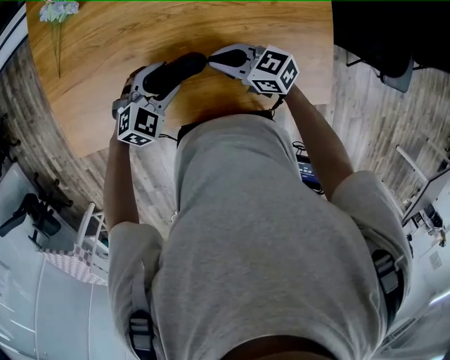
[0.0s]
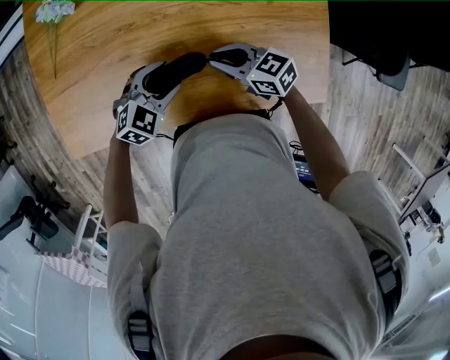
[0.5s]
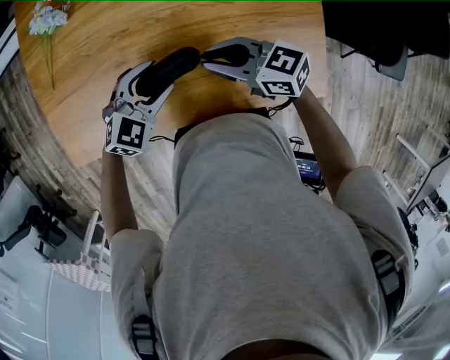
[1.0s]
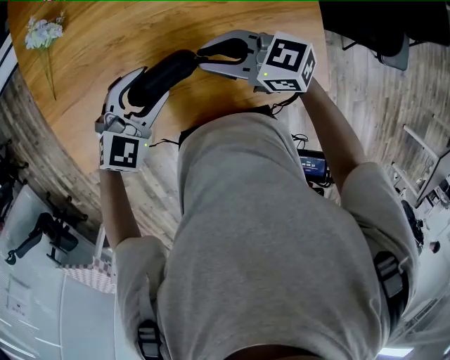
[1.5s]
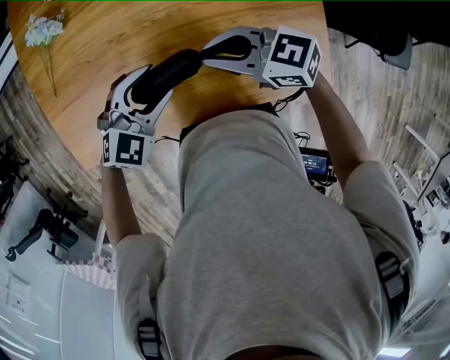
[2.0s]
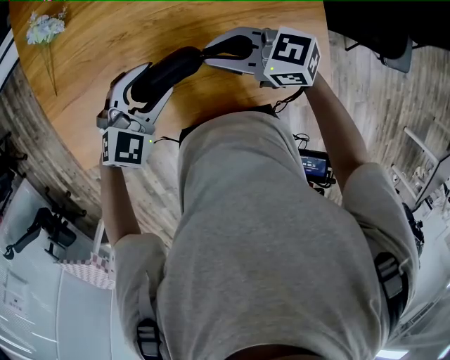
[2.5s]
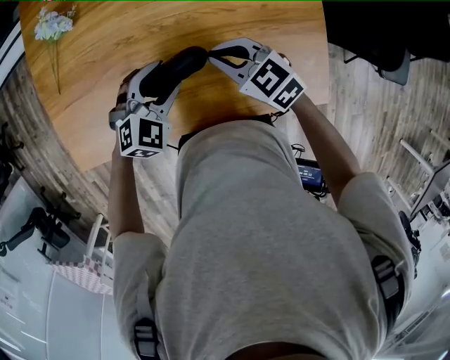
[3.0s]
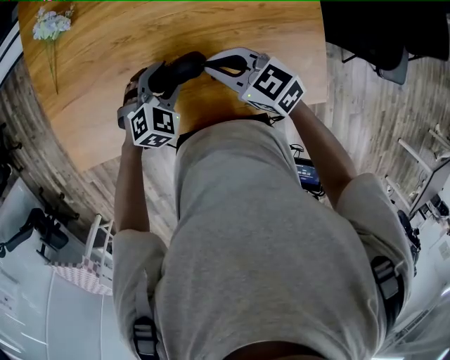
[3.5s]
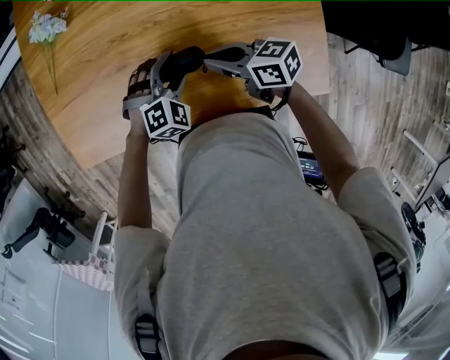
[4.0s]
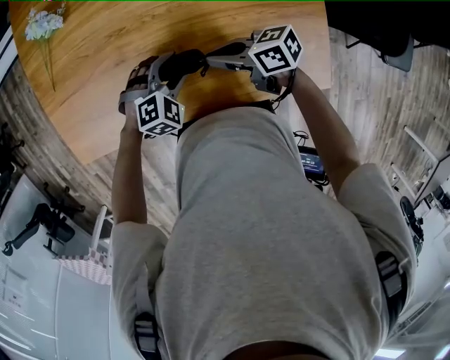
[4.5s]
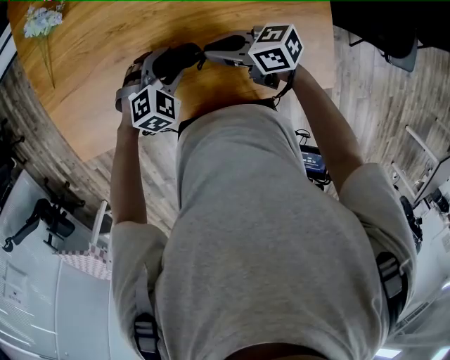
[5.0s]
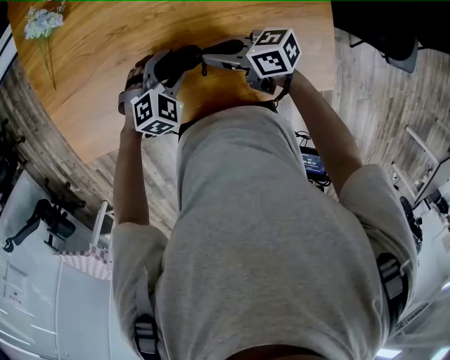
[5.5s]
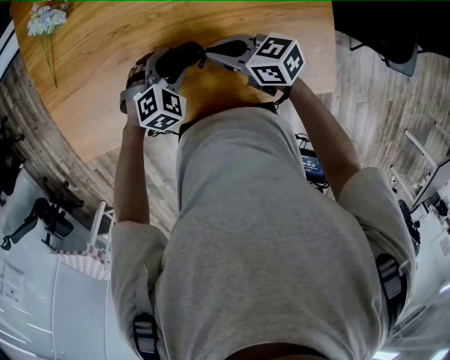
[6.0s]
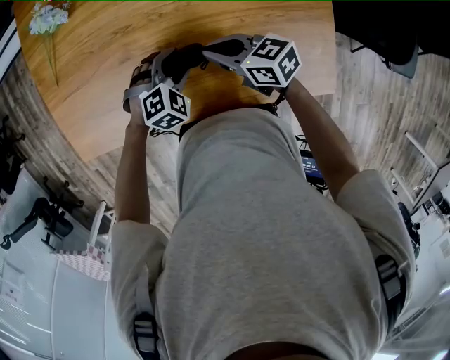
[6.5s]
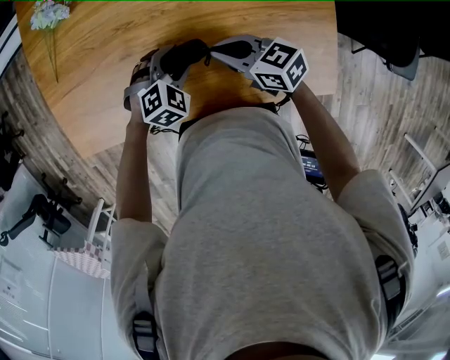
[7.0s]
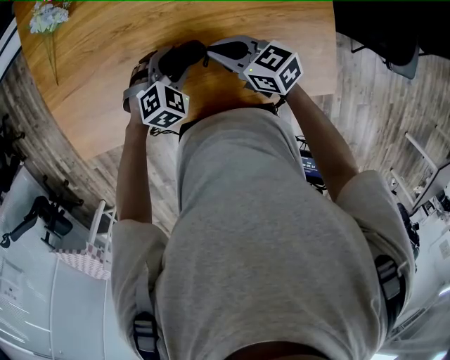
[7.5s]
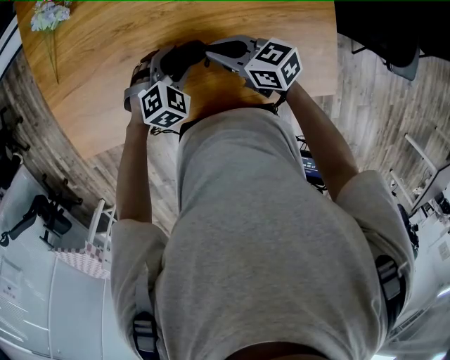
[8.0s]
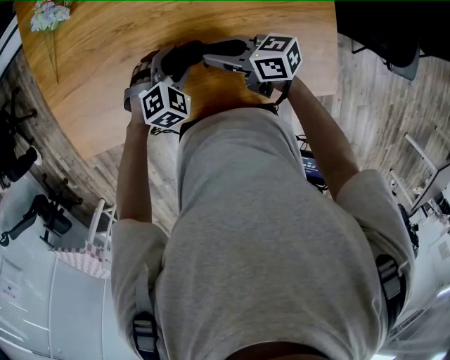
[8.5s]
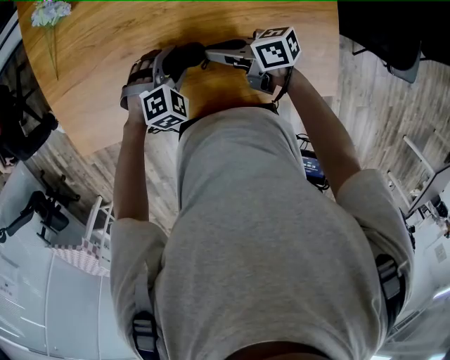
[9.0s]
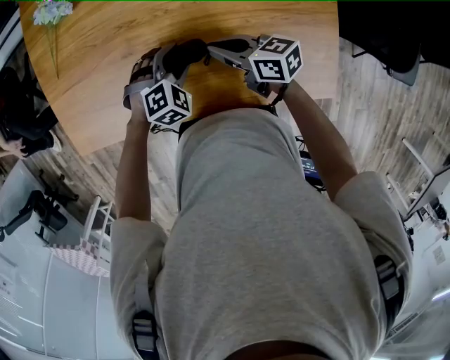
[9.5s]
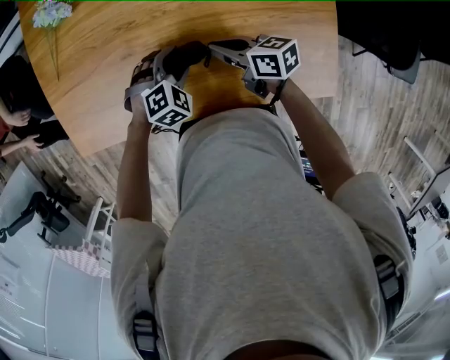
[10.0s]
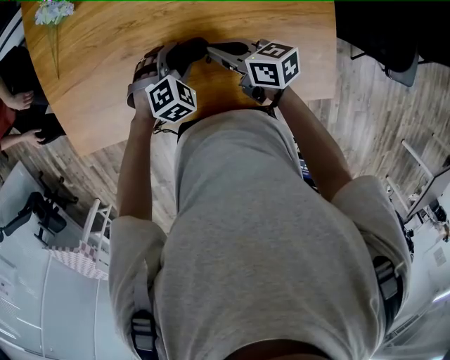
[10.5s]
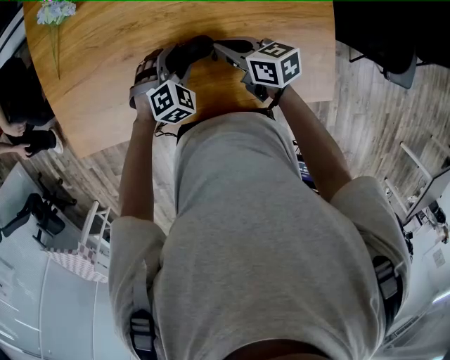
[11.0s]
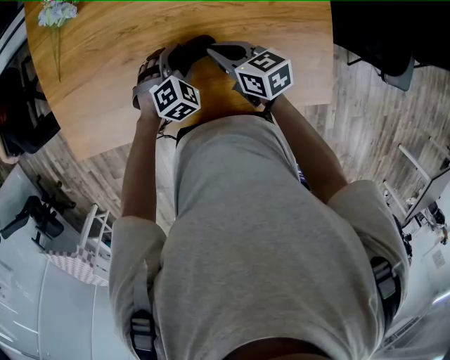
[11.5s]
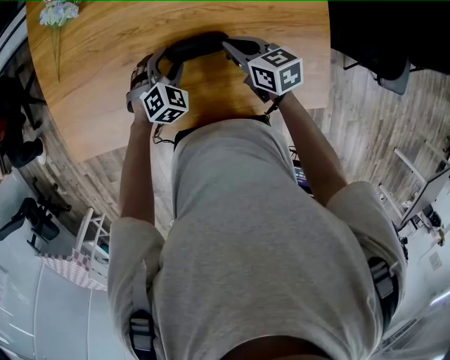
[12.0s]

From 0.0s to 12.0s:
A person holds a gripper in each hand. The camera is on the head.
From 0.0s to 2.0s: The grippers both shift upward by roughly 10 cm.
From 2.0s to 4.0s: The two grippers go about 10 cm downward. The left gripper rotates roughly 20 degrees. The right gripper rotates about 30 degrees.
From 4.0s to 8.0s: The grippers stay close to where they were, moving slightly.
From 10.0s to 12.0s: The right gripper changes place by about 5 cm, and changes its angle by some 20 degrees.

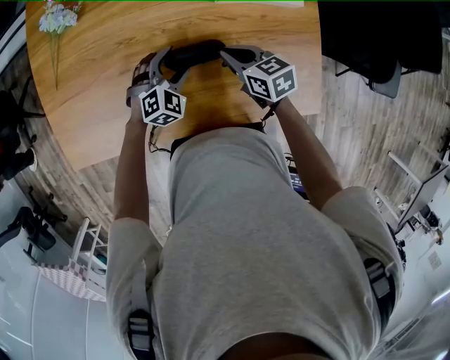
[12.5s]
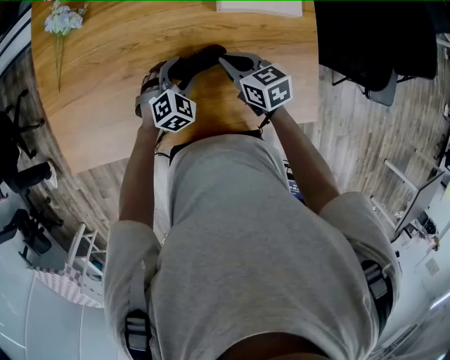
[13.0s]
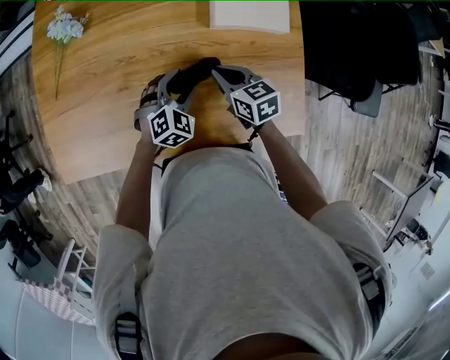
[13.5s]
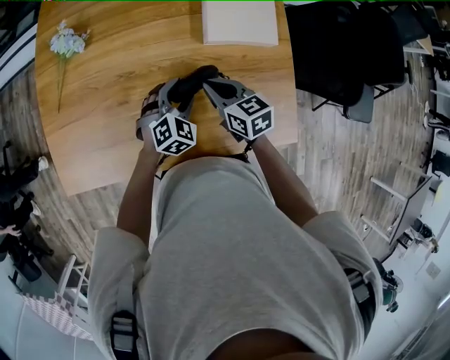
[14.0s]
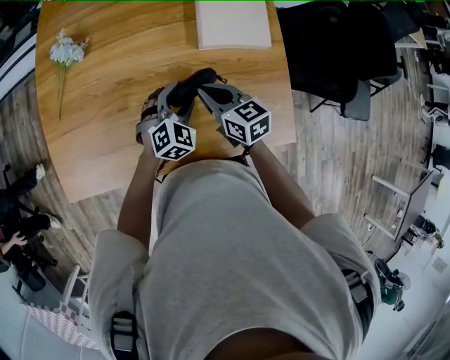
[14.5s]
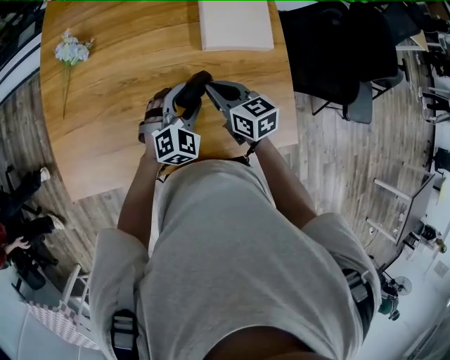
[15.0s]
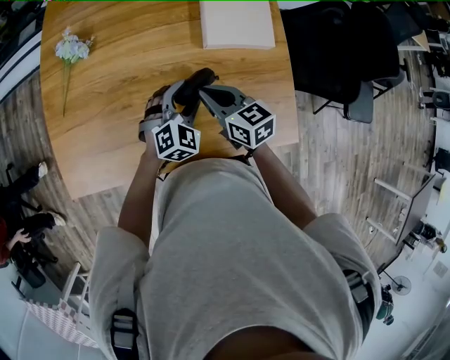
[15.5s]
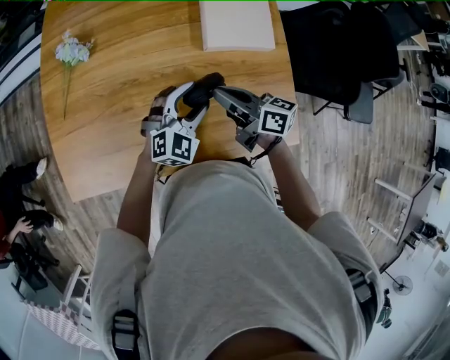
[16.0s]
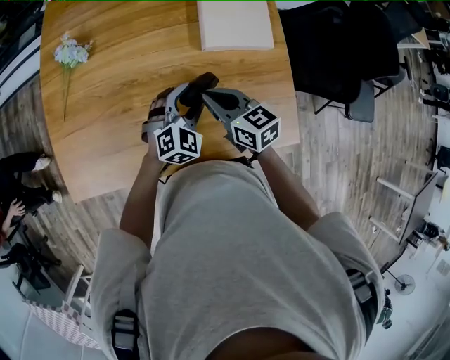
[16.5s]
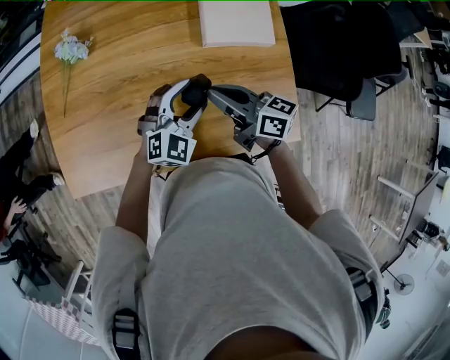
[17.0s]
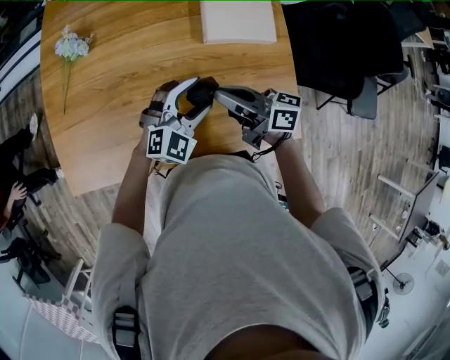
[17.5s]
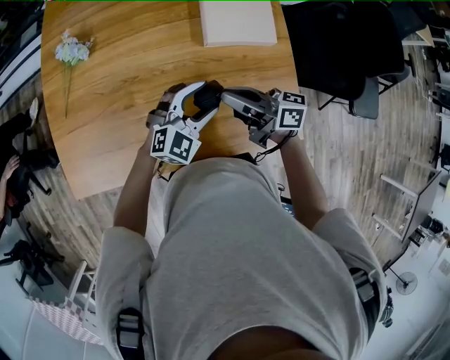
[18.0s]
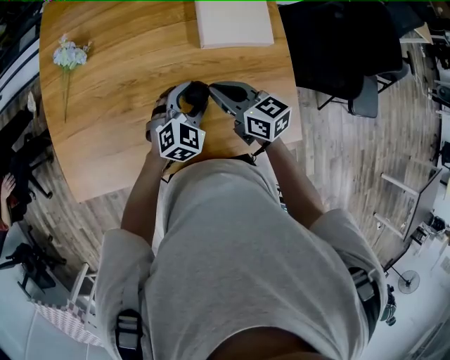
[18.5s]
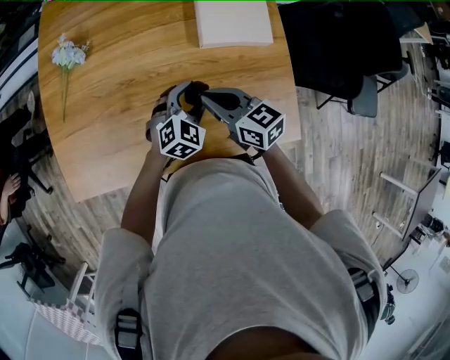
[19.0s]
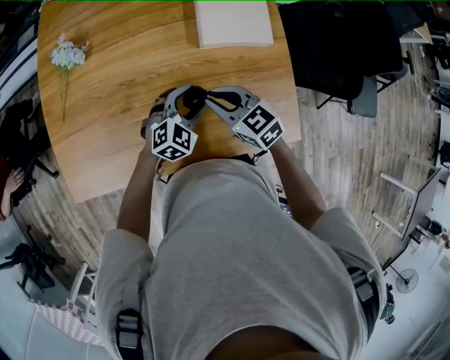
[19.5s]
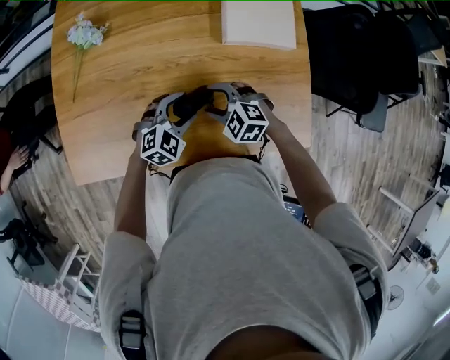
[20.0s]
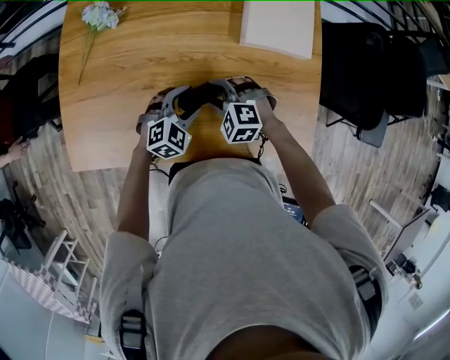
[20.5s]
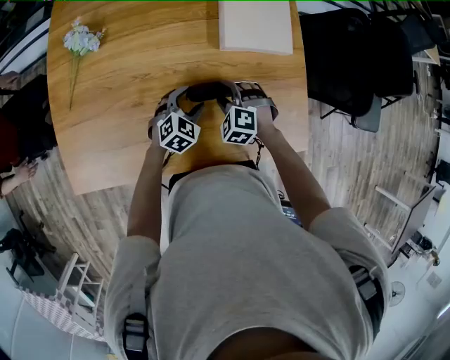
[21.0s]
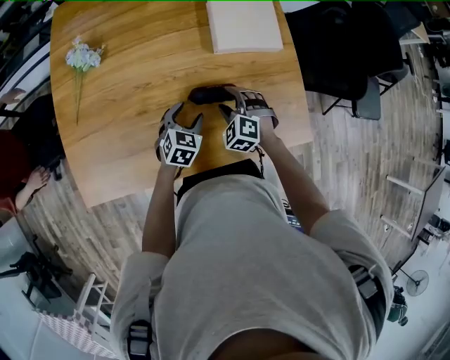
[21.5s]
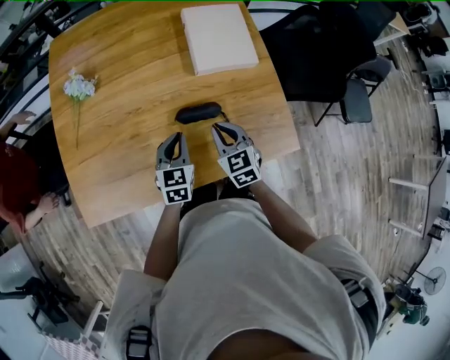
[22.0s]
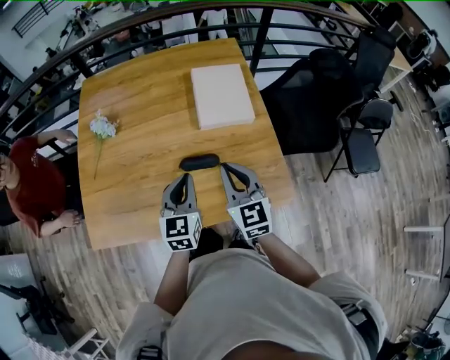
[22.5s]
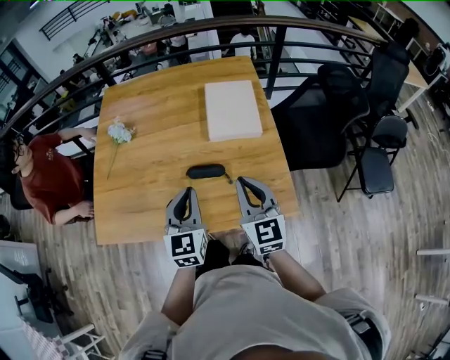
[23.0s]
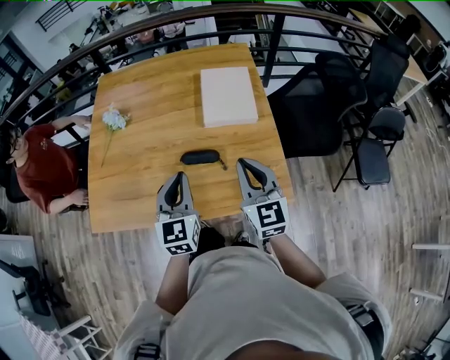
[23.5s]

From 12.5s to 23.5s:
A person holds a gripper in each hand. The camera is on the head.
From 12.5s to 14.5s: The grippers both shift upward by roughly 10 cm.
From 14.5s to 16.0s: The left gripper is displaced upward by some 5 cm. The right gripper changes its angle by roughly 30 degrees.
From 18.0s to 20.0s: The left gripper is displaced to the left and downward by some 10 cm, and rotates about 20 degrees. Meanwhile the right gripper moves downward and to the left, approximately 15 cm, angles its fingers downward, by approximately 50 degrees, and opens up.
From 20.0s to 21.5s: The left gripper swivels approximately 30 degrees. Meanwhile the right gripper ends up roughly 5 cm from where it was, and rotates about 30 degrees.
From 21.5s to 23.5s: The right gripper goes some 30 cm upward and to the right, points its fingers some 40 degrees further upward, and closes its fingers, while the left gripper heads upward, covering approximately 30 cm, angles its fingers upward, by approximately 30 degrees, and closes its fingers.

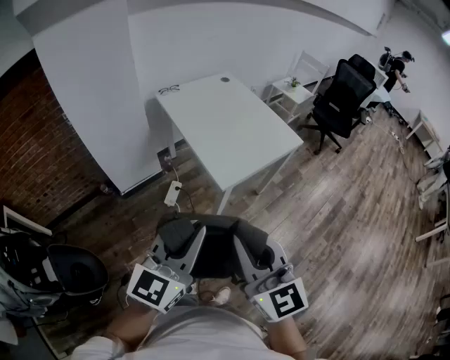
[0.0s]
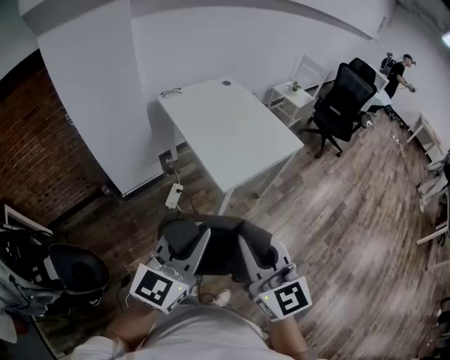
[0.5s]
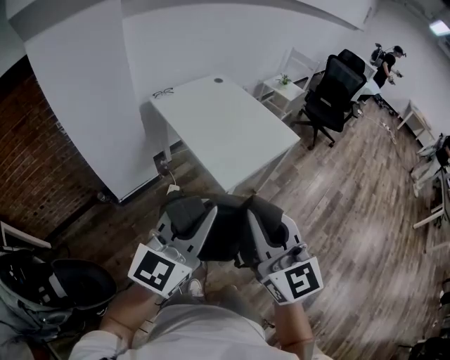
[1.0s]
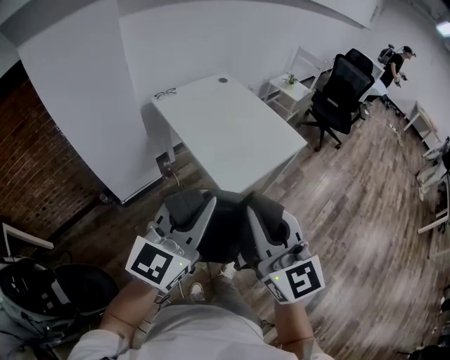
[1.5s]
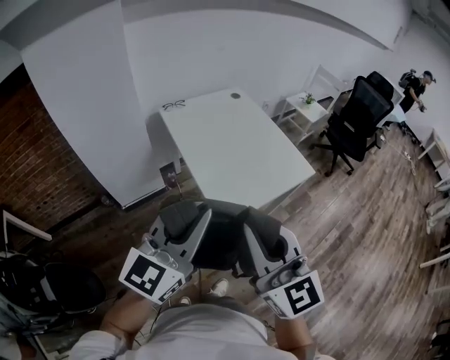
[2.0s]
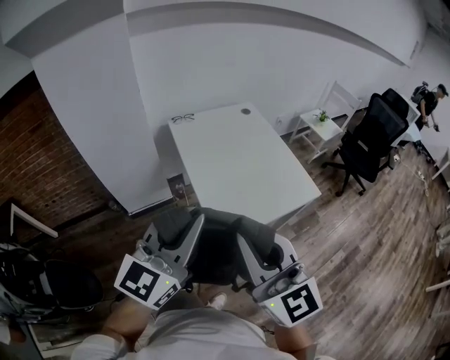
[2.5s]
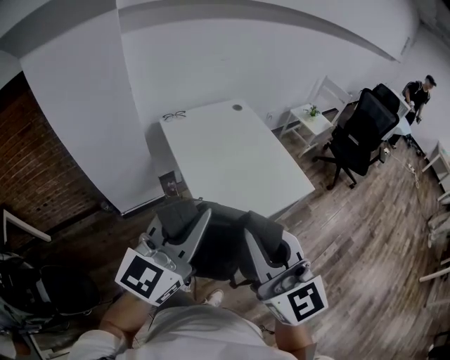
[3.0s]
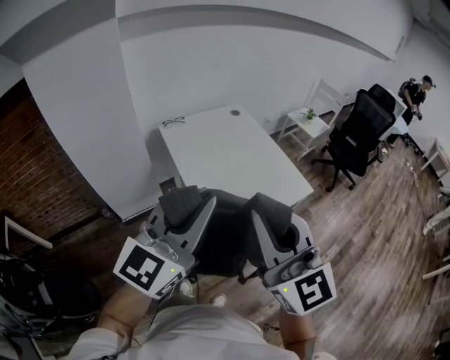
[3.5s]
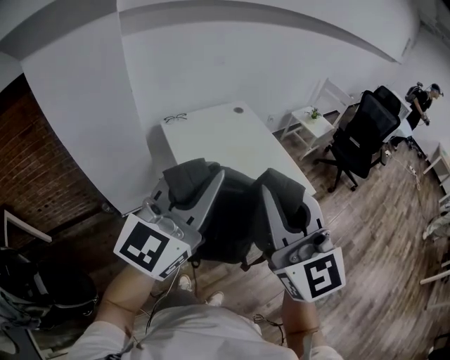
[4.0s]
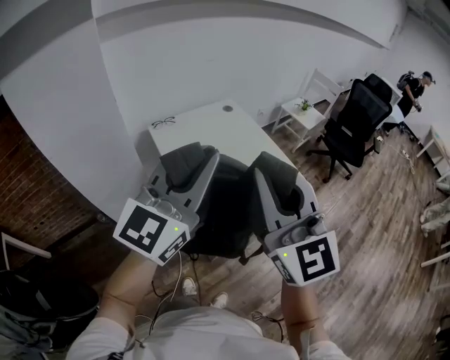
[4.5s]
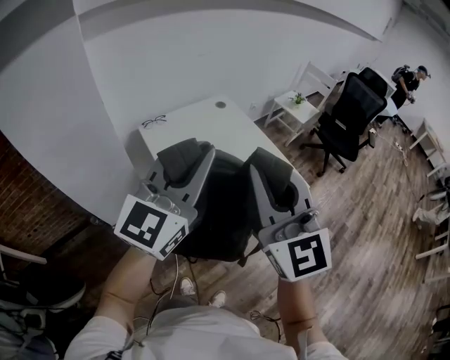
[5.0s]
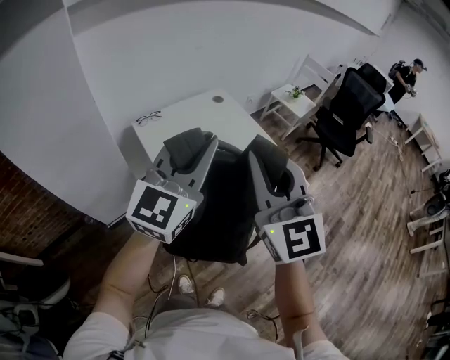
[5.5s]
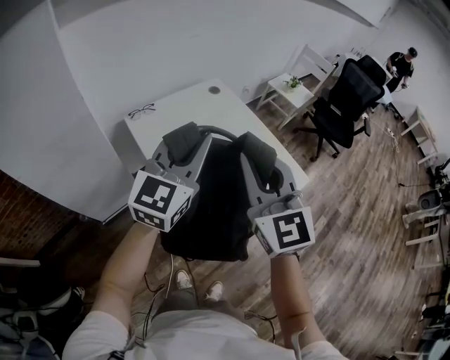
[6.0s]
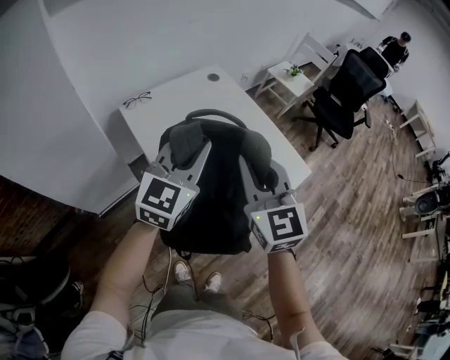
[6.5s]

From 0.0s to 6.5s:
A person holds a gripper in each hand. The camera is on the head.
From 0.0s to 2.0s: Both grippers move forward, about 20 cm.
From 2.0s to 4.5s: Both grippers travel together forward and upward, roughly 20 cm.
From 4.5s to 6.5s: The grippers both shift forward and downward by roughly 30 cm. The right gripper swivels approximately 20 degrees.
